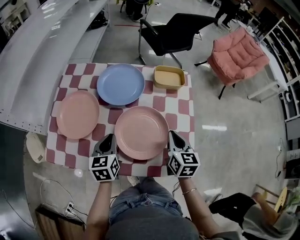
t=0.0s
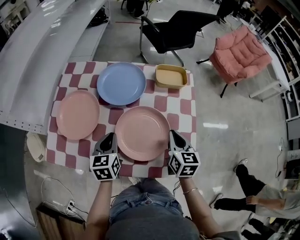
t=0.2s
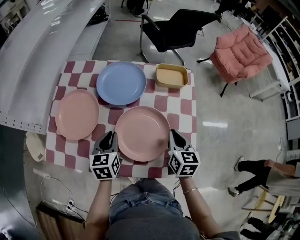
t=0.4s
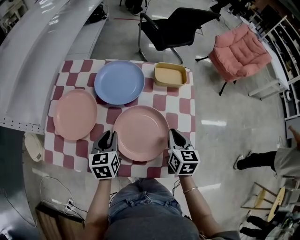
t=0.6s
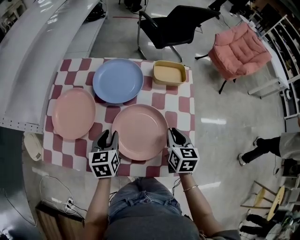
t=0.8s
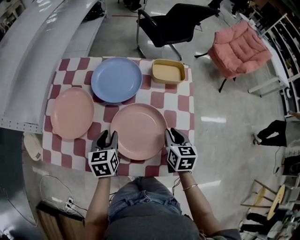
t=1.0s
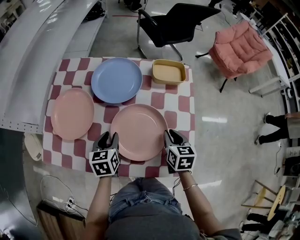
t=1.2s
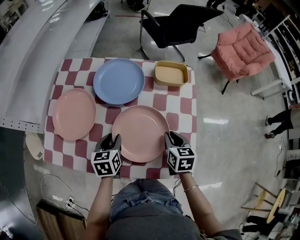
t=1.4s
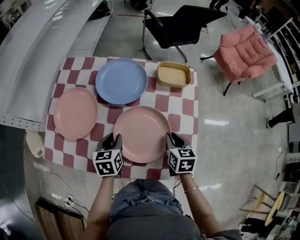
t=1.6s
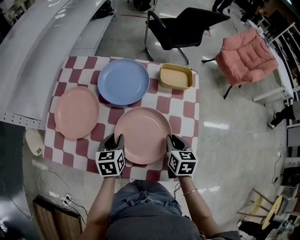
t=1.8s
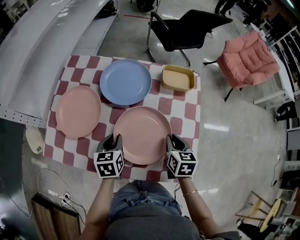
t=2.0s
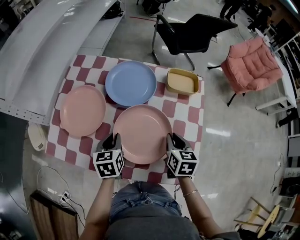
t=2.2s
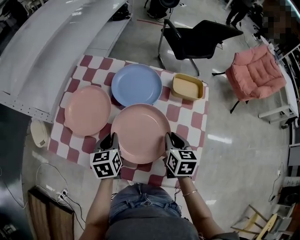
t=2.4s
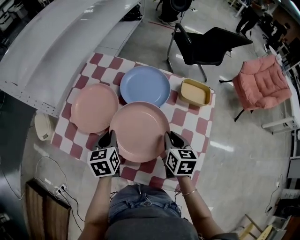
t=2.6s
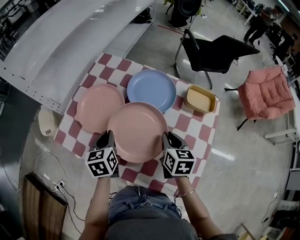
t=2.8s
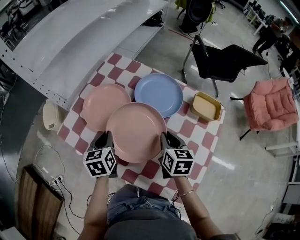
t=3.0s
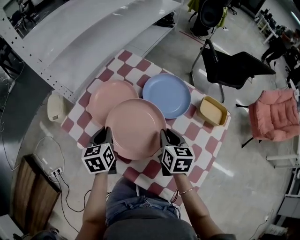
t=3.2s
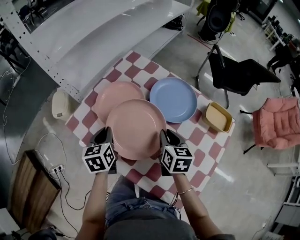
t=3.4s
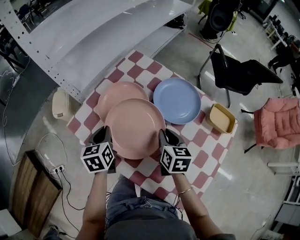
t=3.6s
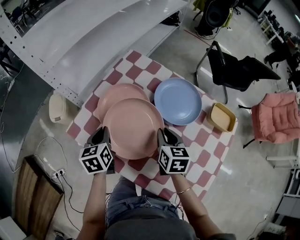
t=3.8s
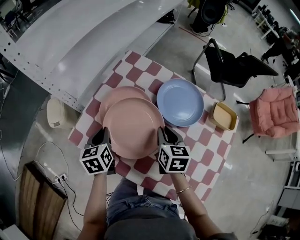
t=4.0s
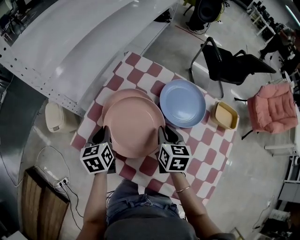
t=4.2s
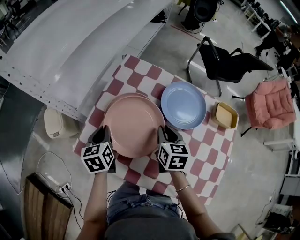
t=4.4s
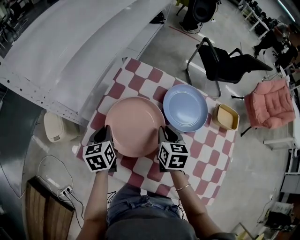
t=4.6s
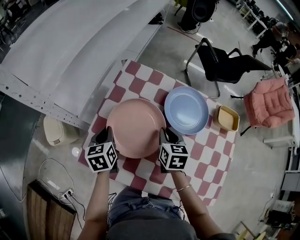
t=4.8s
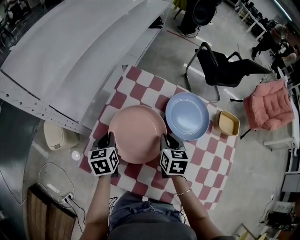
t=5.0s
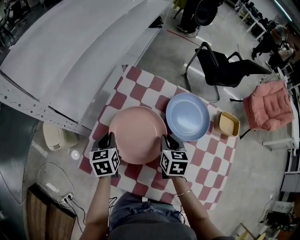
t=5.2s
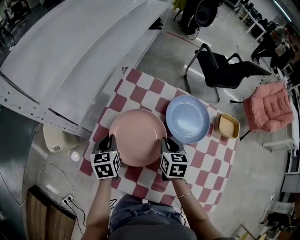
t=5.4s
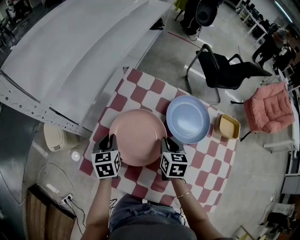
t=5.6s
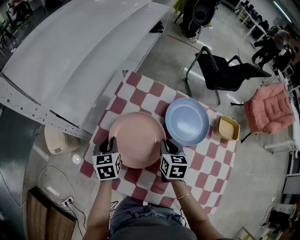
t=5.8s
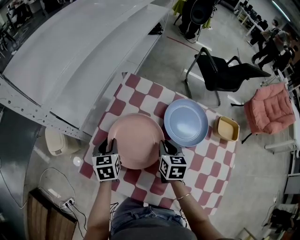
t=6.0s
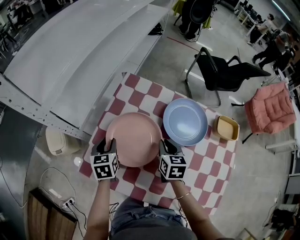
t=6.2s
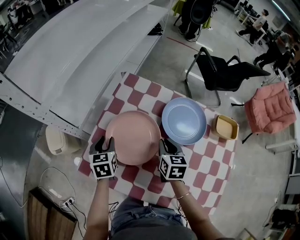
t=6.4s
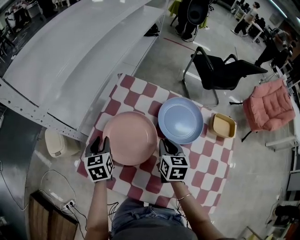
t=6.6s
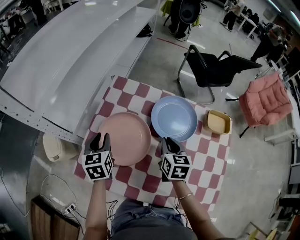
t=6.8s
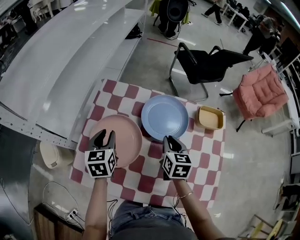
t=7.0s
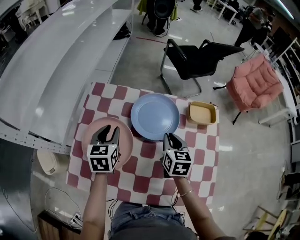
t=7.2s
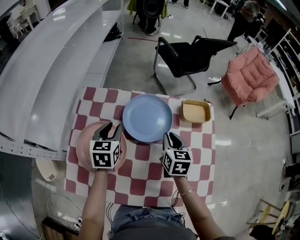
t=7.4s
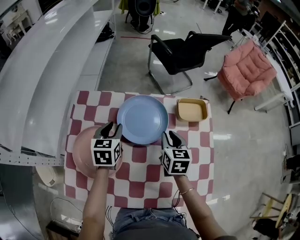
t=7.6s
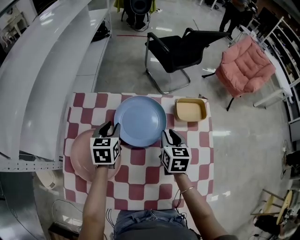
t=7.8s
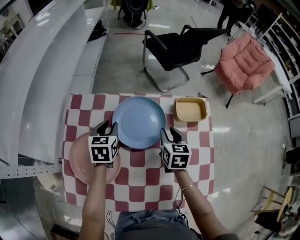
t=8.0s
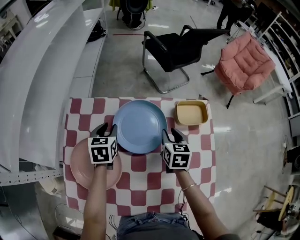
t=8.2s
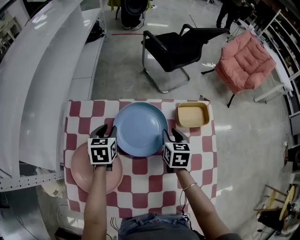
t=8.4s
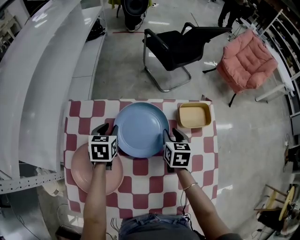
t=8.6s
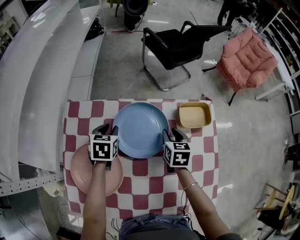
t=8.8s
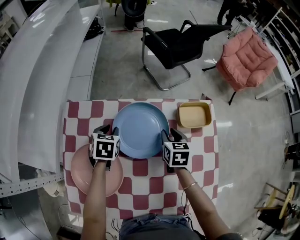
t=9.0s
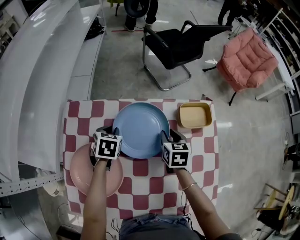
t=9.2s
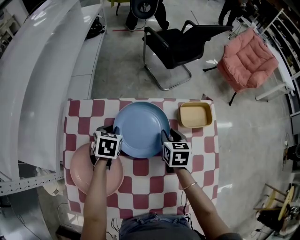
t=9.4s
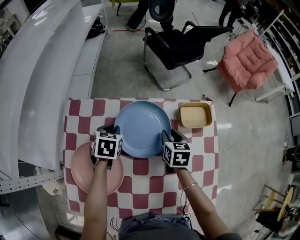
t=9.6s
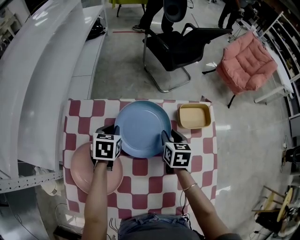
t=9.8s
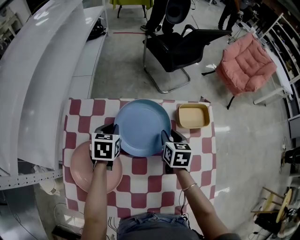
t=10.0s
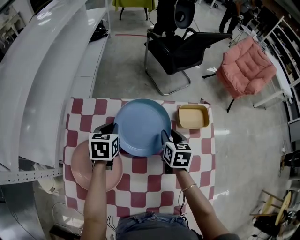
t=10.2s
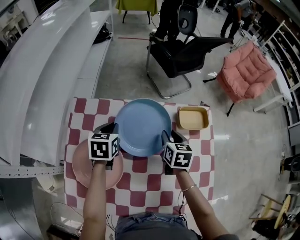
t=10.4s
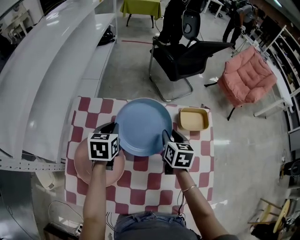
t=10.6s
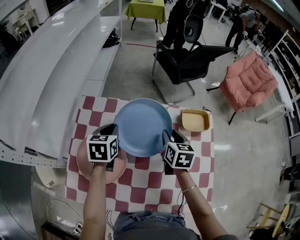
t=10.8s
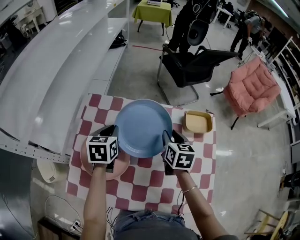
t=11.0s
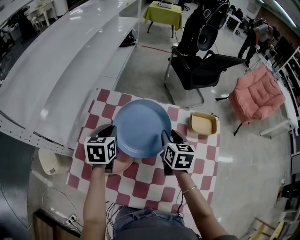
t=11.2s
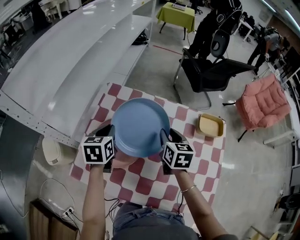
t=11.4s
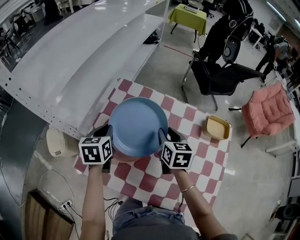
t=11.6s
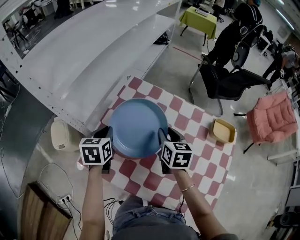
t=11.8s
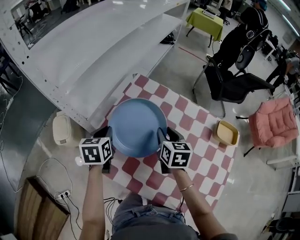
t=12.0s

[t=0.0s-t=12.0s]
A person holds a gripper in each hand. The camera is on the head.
t=0.0s to t=1.6s: Both grippers move downward, some 5 cm. The left gripper opens.
t=1.6s to t=3.0s: The left gripper ends up approximately 15 cm from where it was, turns by some 30 degrees, and closes, while the right gripper shifts by some 15 cm, and rotates about 20 degrees.
t=3.0s to t=4.4s: The two grippers go about 20 cm to the left and forward.
t=4.4s to t=6.0s: The left gripper shifts by some 5 cm.
t=6.0s to t=7.6s: The left gripper ends up about 25 cm from where it was, and changes its angle by approximately 30 degrees. Meanwhile the right gripper changes place by roughly 20 cm, and rotates some 20 degrees.
t=7.6s to t=9.0s: The right gripper is displaced forward and downward by roughly 10 cm. Meanwhile the left gripper is displaced downward and forward by about 10 cm, and turns by some 20 degrees.
t=9.0s to t=10.4s: The left gripper travels upward by about 5 cm, and closes its fingers. Meanwhile the right gripper moves some 5 cm.
t=10.4s to t=12.0s: The left gripper ends up about 30 cm from where it was, and swivels approximately 30 degrees; the right gripper changes place by about 25 cm, and changes its angle by approximately 30 degrees.

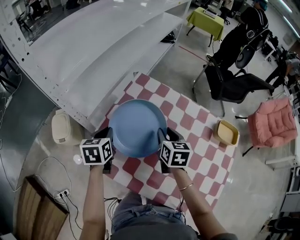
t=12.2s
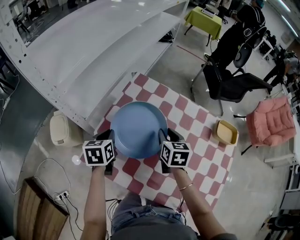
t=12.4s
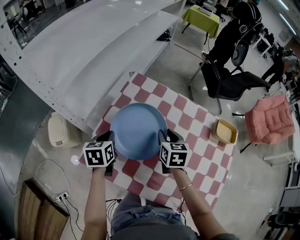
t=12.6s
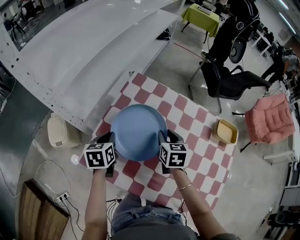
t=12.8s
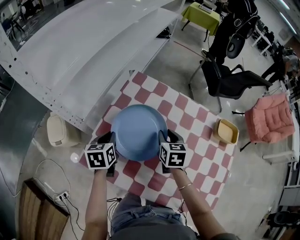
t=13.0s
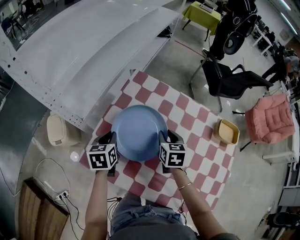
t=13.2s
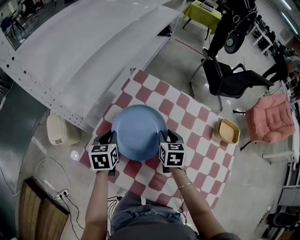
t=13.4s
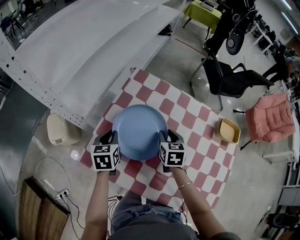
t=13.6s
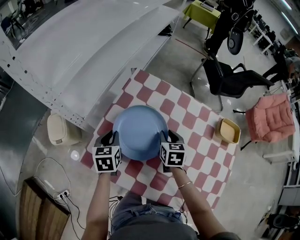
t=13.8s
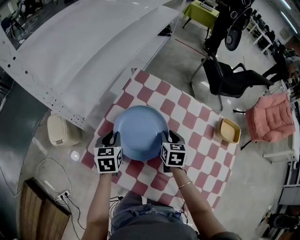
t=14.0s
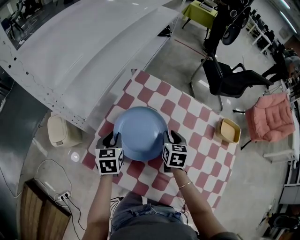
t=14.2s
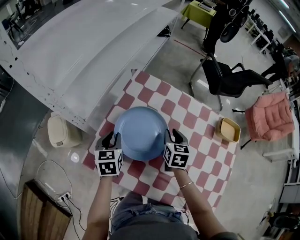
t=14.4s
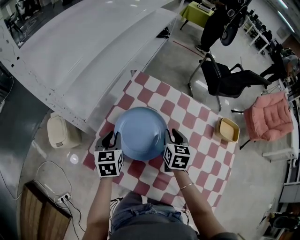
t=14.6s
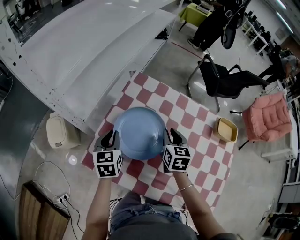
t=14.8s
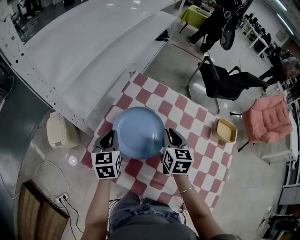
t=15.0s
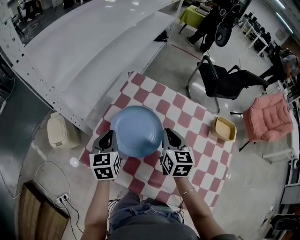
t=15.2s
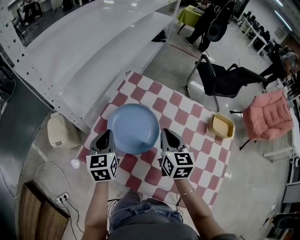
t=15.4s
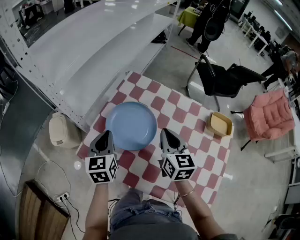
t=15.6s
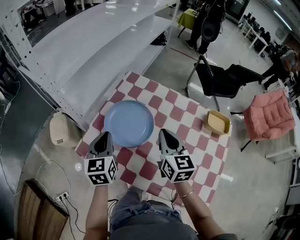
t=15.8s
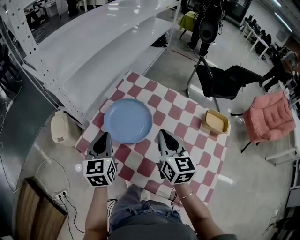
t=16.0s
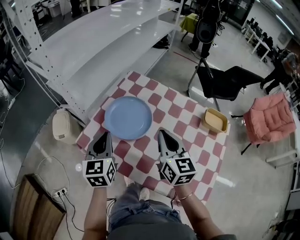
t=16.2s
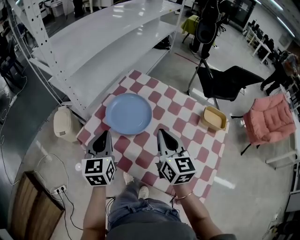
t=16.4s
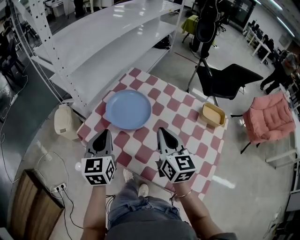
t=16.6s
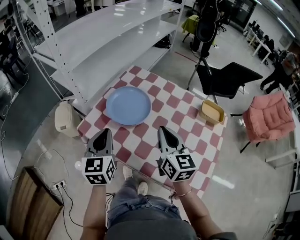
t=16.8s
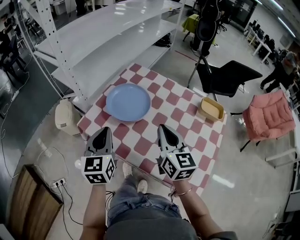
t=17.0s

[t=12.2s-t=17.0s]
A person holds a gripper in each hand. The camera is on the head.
t=12.2s to t=13.8s: Both grippers move downward, some 5 cm.
t=13.8s to t=15.4s: Both grippers move upward, roughly 10 cm. The right gripper changes its angle by approximately 20 degrees, and closes its fingers.
t=15.4s to t=17.0s: The left gripper travels backward by approximately 20 cm; the right gripper moves backward and upward, approximately 20 cm.

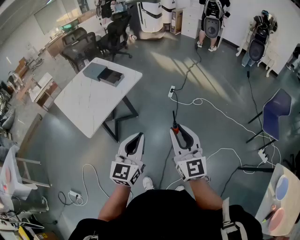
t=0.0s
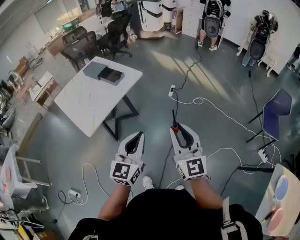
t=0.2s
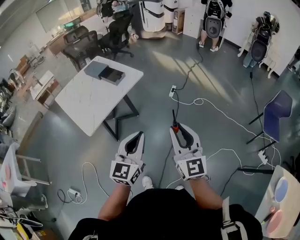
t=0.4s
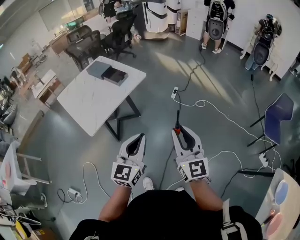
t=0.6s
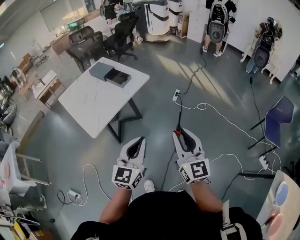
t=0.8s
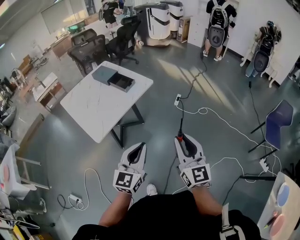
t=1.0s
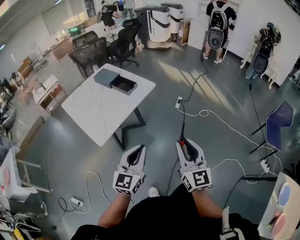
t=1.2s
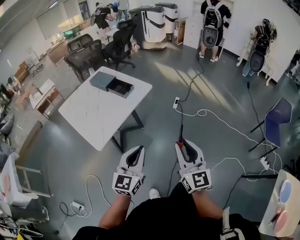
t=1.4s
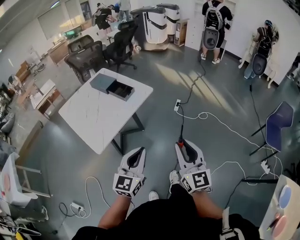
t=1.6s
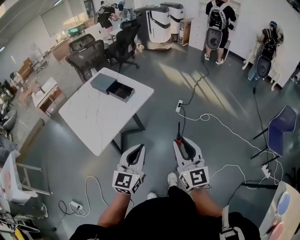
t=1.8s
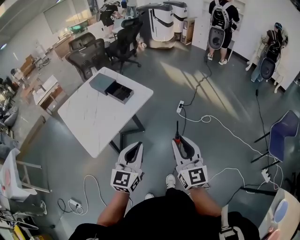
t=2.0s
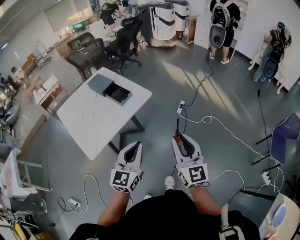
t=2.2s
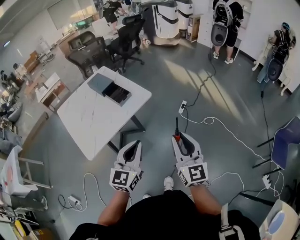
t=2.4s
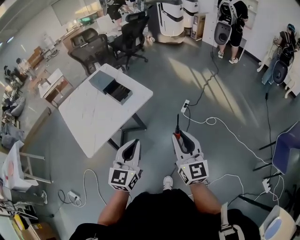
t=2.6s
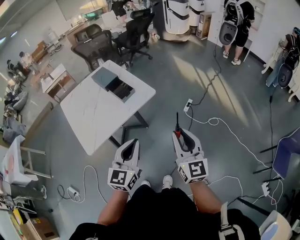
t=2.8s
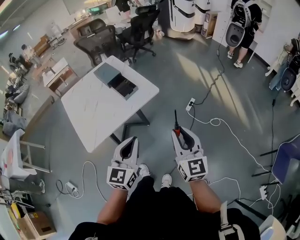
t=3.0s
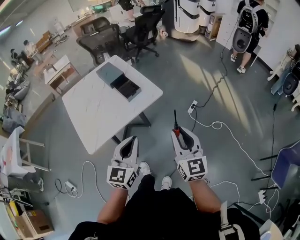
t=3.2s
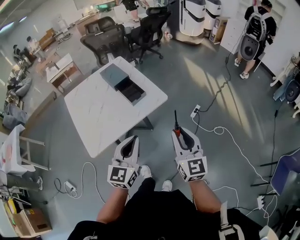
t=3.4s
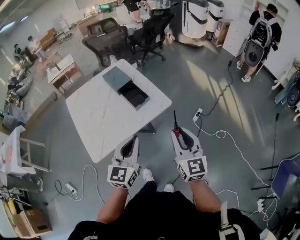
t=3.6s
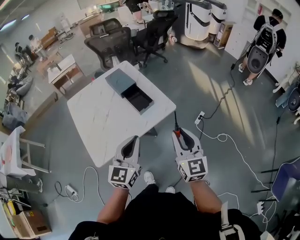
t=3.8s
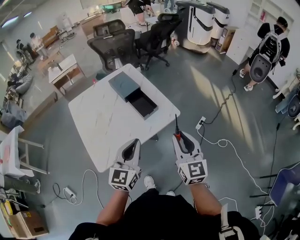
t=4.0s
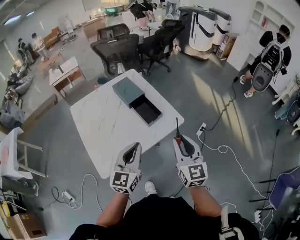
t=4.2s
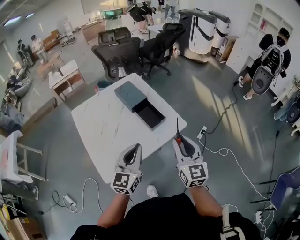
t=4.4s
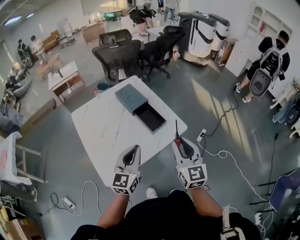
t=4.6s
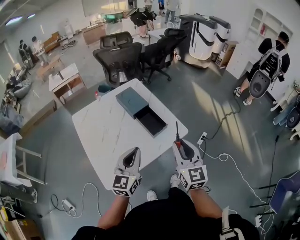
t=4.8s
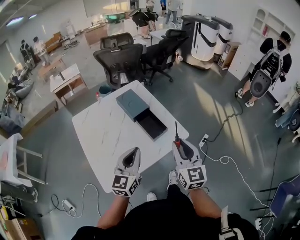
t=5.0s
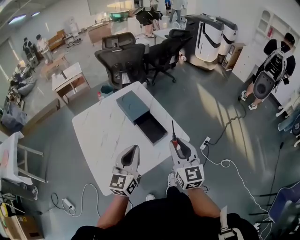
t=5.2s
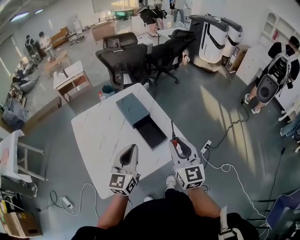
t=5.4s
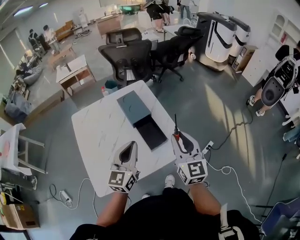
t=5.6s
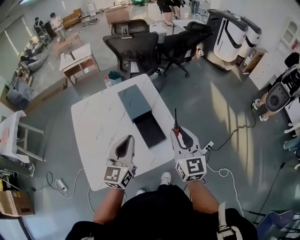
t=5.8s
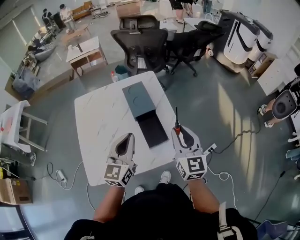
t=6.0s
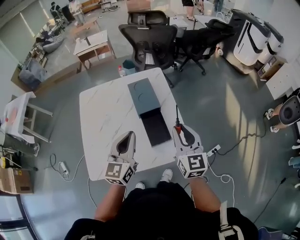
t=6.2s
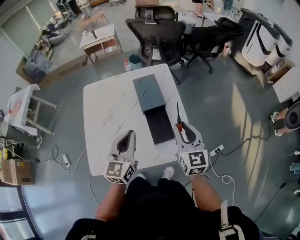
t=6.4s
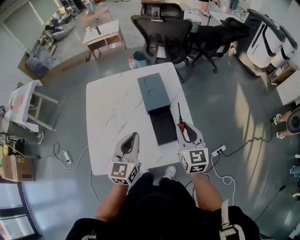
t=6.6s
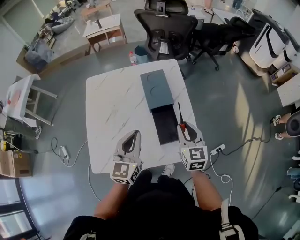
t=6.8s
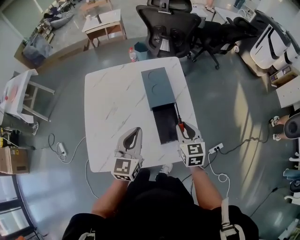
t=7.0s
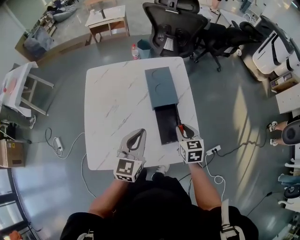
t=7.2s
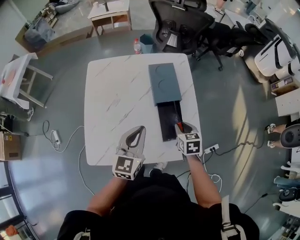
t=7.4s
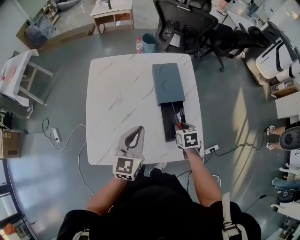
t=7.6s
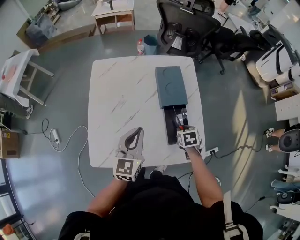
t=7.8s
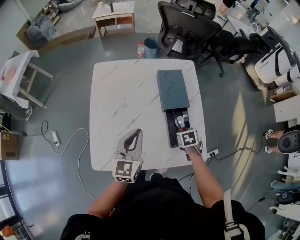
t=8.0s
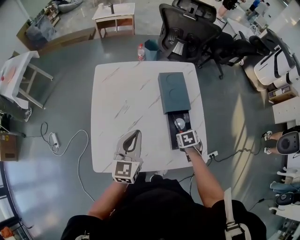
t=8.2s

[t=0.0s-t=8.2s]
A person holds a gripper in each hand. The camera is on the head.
t=0.0s to t=1.6s: Both grippers move to the left, some 10 cm.
t=1.6s to t=3.2s: The two grippers go about 20 cm forward.
t=3.2s to t=5.0s: Both grippers move forward and to the left, approximately 25 cm.
t=5.0s to t=6.6s: The right gripper ends up about 25 cm from where it was, and changes its angle by roughly 30 degrees; the left gripper changes place by about 15 cm, and rotates about 30 degrees.
t=6.6s to t=8.2s: The left gripper is displaced to the left by about 10 cm; the right gripper moves downward, approximately 25 cm, and tilts its fingers some 60 degrees downward.
